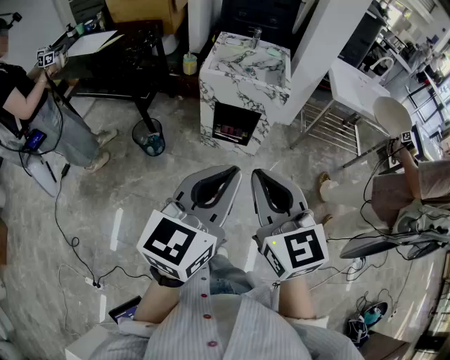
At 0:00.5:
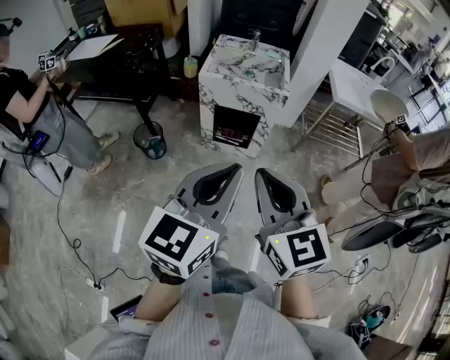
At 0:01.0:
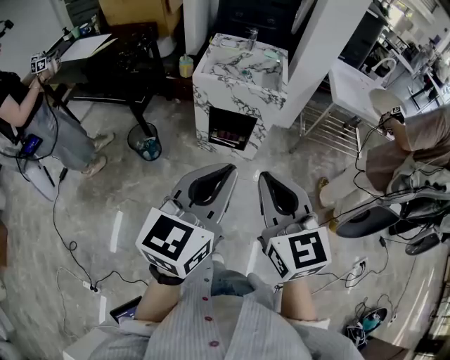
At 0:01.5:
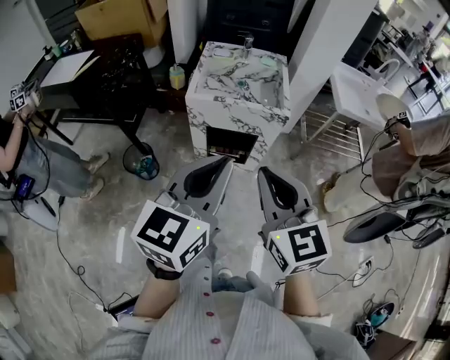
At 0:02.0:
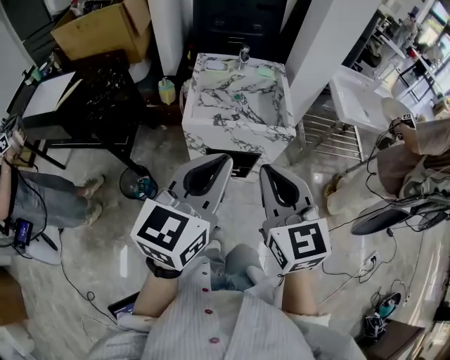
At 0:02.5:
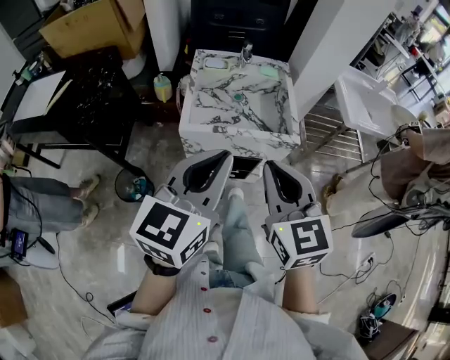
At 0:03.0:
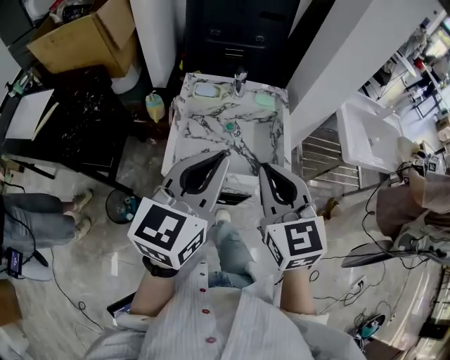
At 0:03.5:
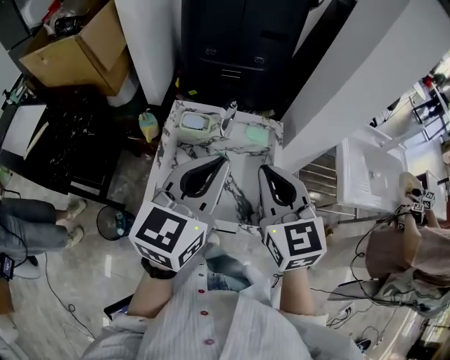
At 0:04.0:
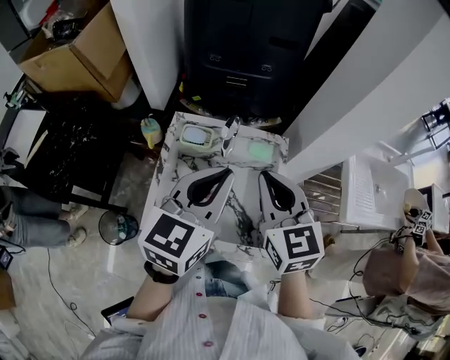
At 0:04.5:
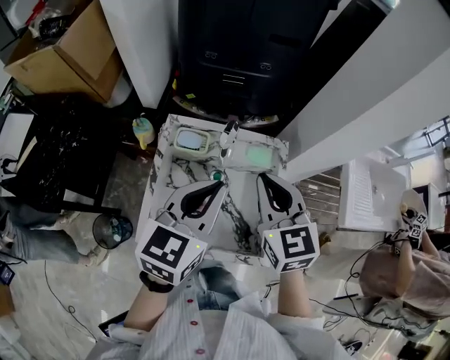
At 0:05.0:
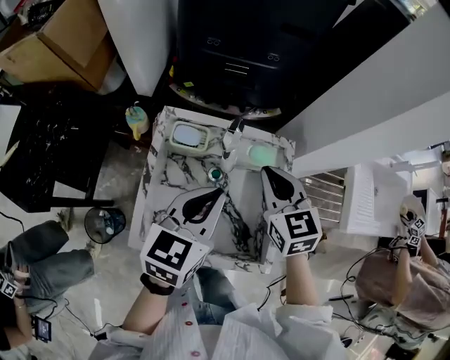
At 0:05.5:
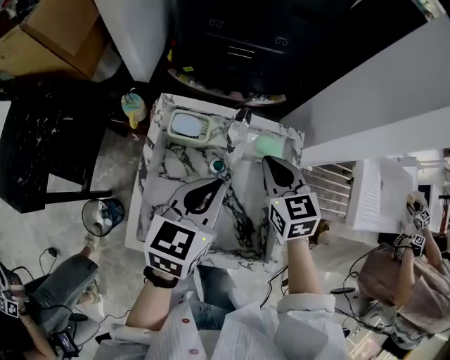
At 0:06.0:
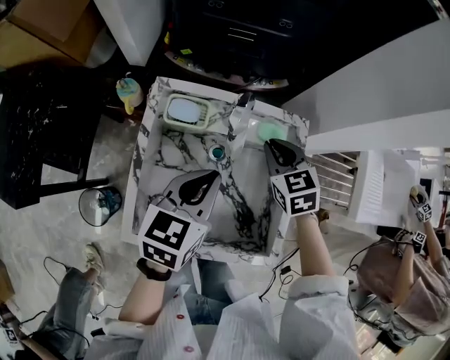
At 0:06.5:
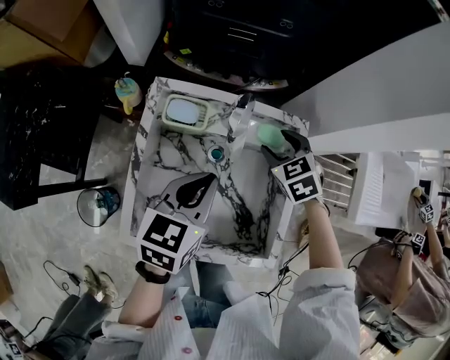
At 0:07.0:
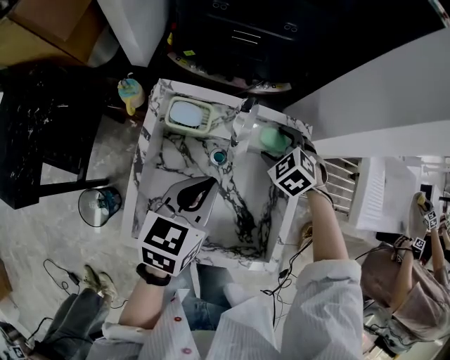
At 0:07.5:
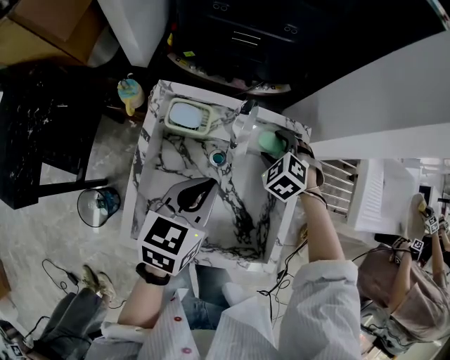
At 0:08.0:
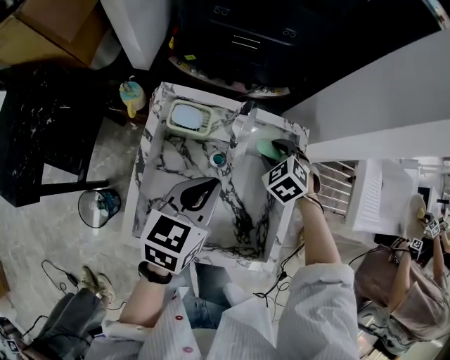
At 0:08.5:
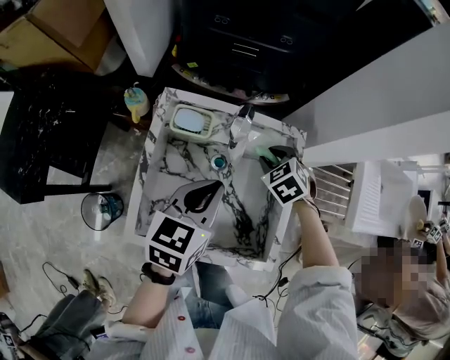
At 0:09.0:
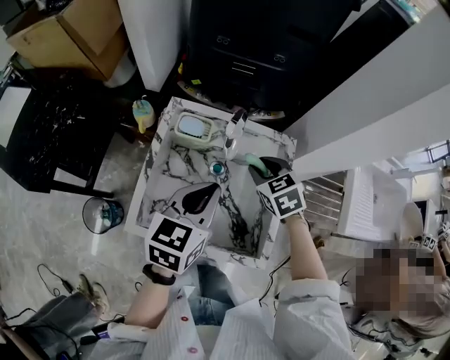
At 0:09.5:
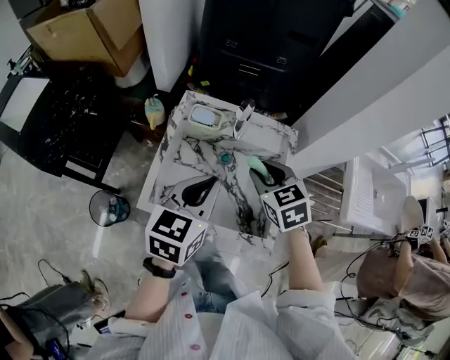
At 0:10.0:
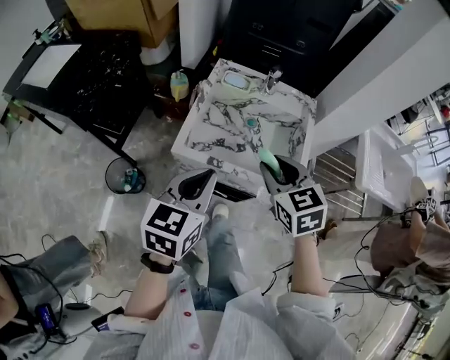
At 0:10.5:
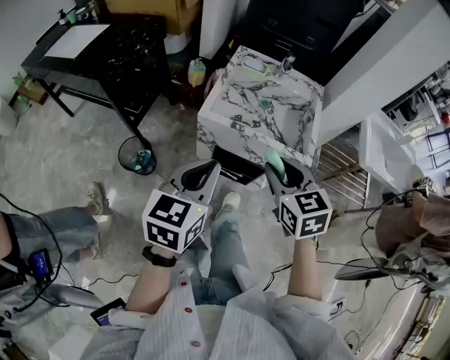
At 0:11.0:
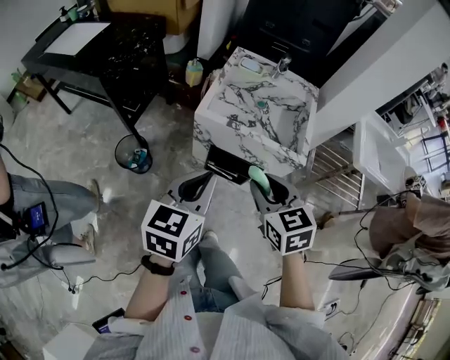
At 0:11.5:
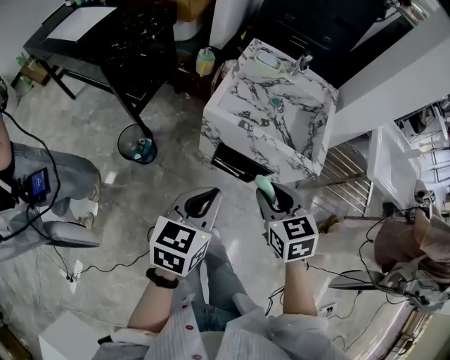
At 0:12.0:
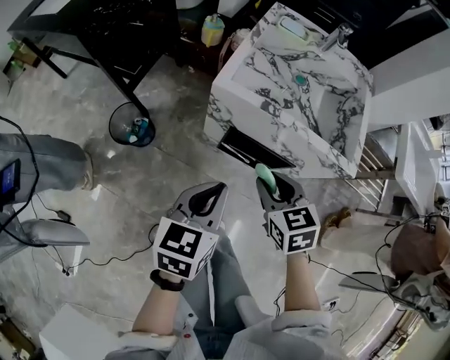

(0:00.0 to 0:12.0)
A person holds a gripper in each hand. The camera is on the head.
0:00.0 - 0:02.0: The two grippers go about 30 cm forward.
0:02.0 - 0:04.0: The two grippers travel together, forward, some 40 cm.
0:04.0 - 0:06.0: The left gripper is displaced downward by approximately 20 cm. The right gripper moves downward and forward, roughly 25 cm, and changes its angle by some 30 degrees.
0:06.0 - 0:08.0: The right gripper goes some 5 cm downward, rotates some 30 degrees, and opens up.
0:08.0 - 0:10.0: The right gripper goes roughly 35 cm backward and upward, and turns by some 40 degrees. Meanwhile the left gripper goes roughly 25 cm backward.
0:10.0 - 0:12.0: The left gripper goes roughly 20 cm downward and backward. Meanwhile the right gripper shifts some 25 cm downward, backward and to the left.

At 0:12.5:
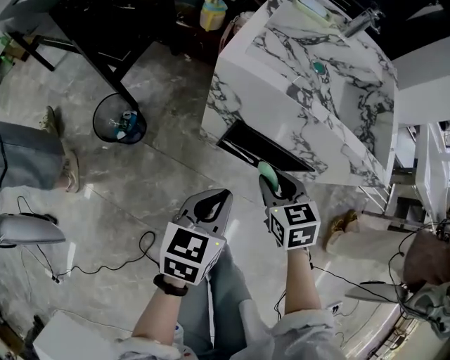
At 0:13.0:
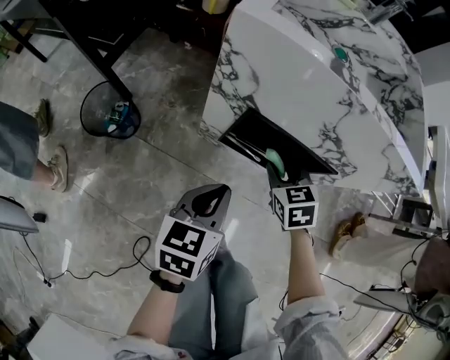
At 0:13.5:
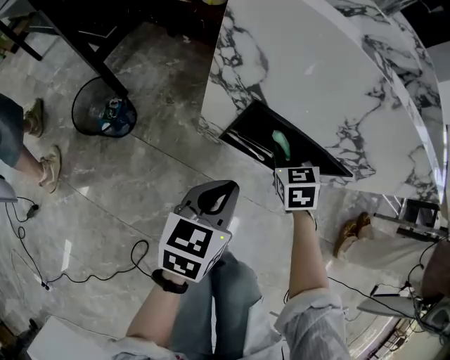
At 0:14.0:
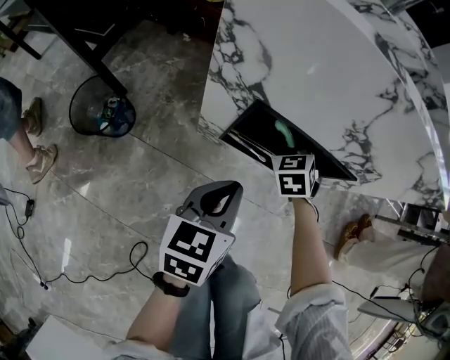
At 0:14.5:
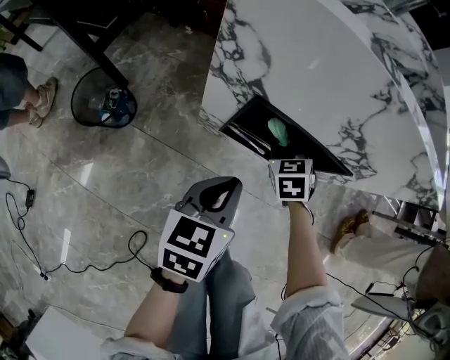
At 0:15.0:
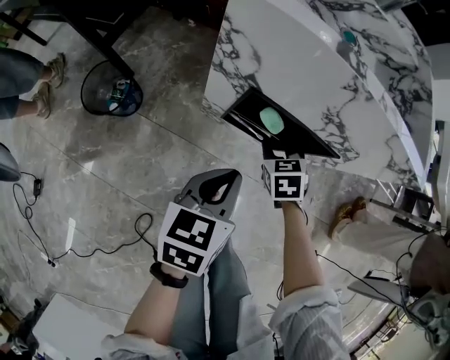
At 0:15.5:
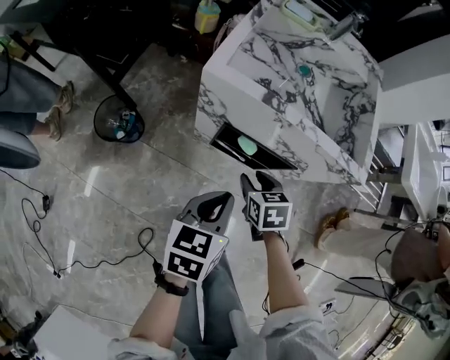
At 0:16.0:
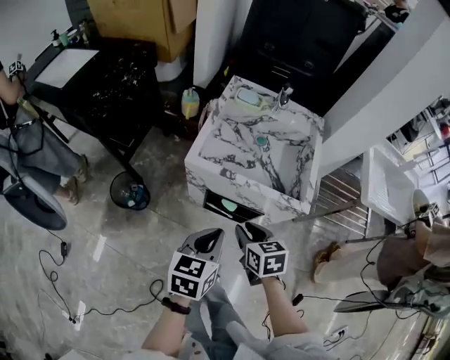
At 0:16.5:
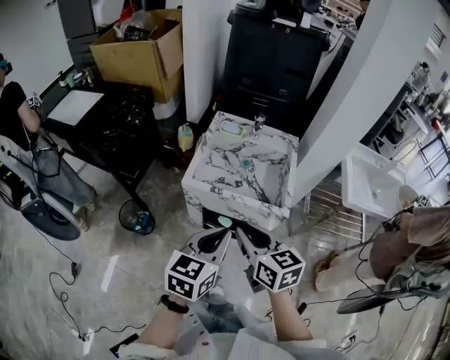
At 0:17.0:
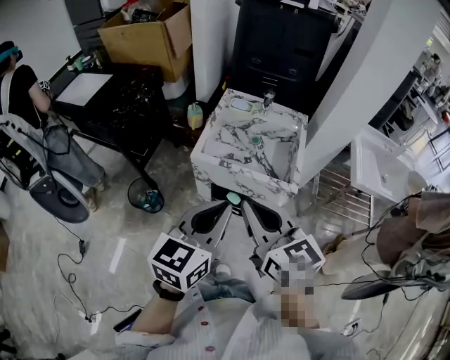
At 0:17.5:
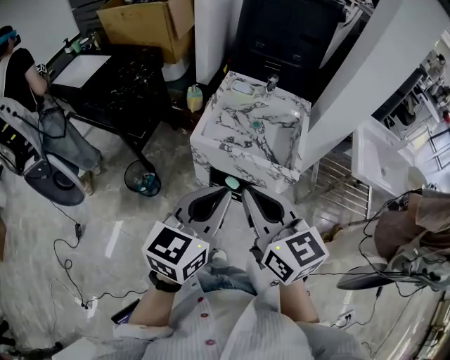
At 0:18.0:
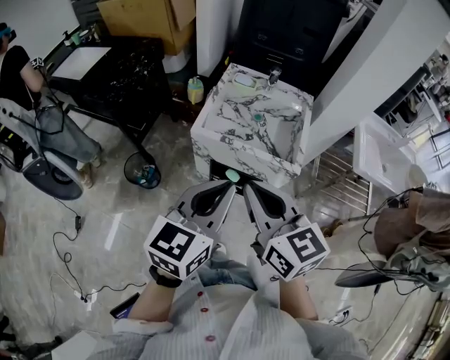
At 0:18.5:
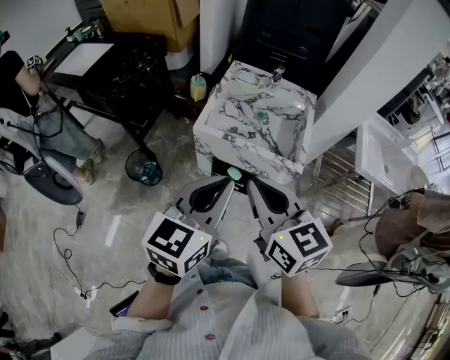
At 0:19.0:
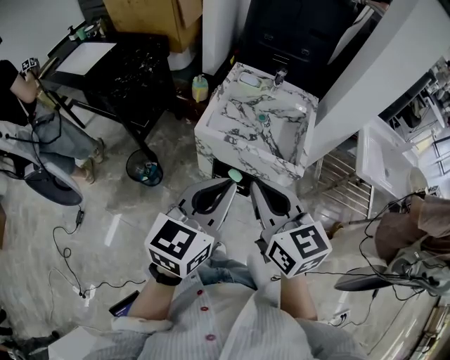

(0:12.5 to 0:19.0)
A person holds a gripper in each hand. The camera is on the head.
0:12.5 - 0:14.5: The left gripper moves downward, some 15 cm. Meanwhile the right gripper goes approximately 20 cm downward and forward.
0:14.5 - 0:17.0: The two grippers go some 60 cm upward. The right gripper tilts its fingers roughly 40 degrees upward, and closes up, while the left gripper turns by about 30 degrees.
0:17.0 - 0:19.0: The grippers move only a little.

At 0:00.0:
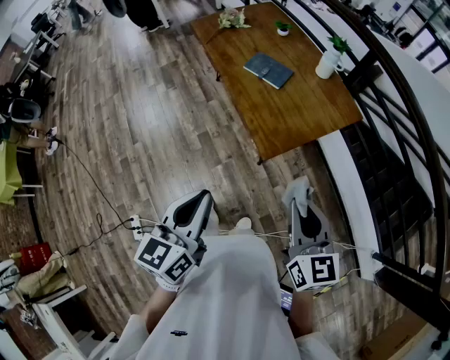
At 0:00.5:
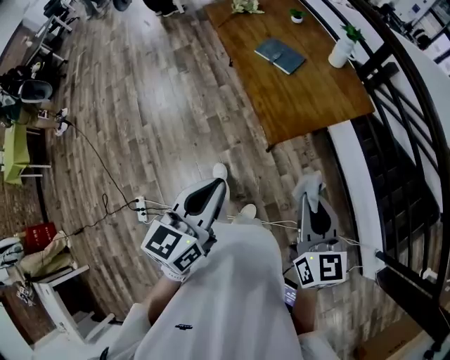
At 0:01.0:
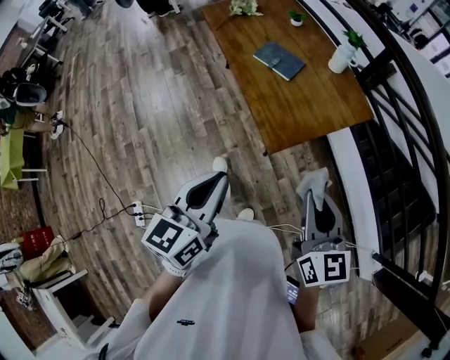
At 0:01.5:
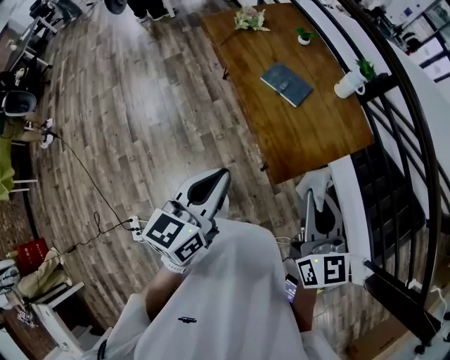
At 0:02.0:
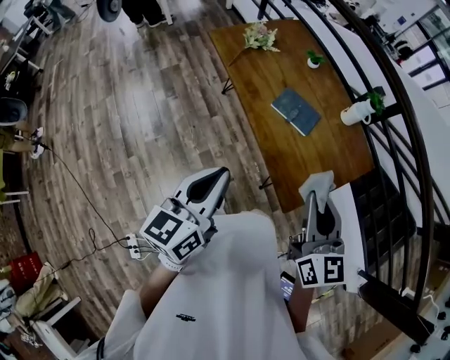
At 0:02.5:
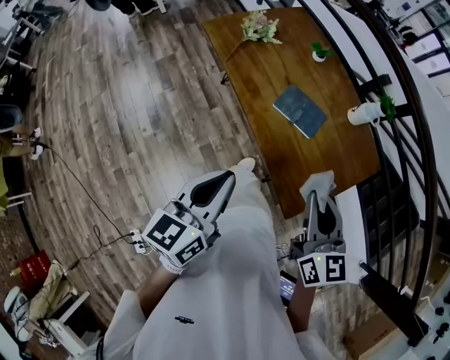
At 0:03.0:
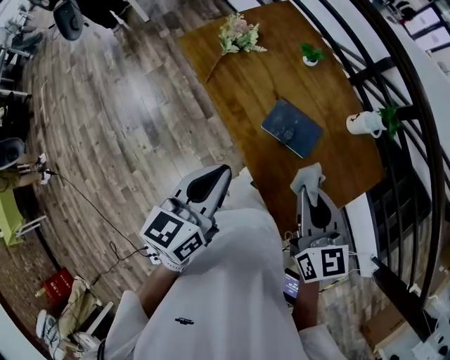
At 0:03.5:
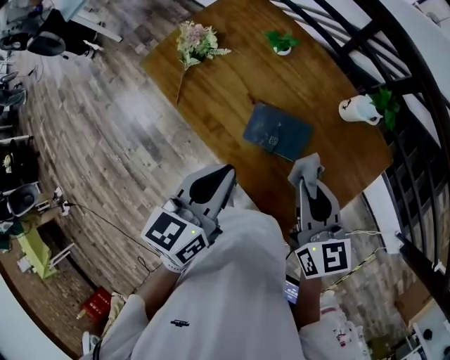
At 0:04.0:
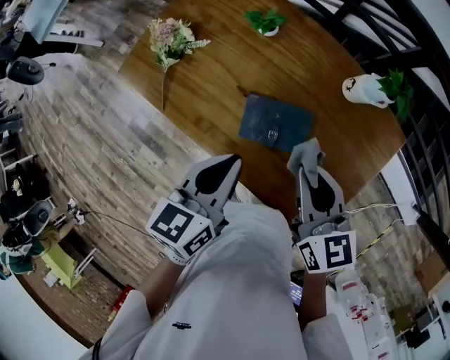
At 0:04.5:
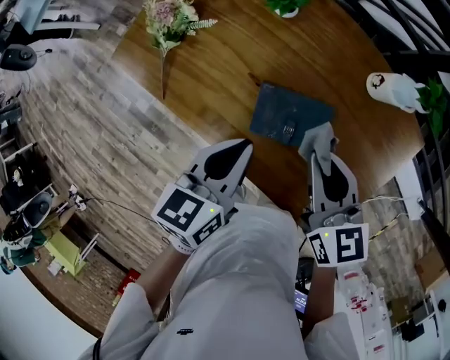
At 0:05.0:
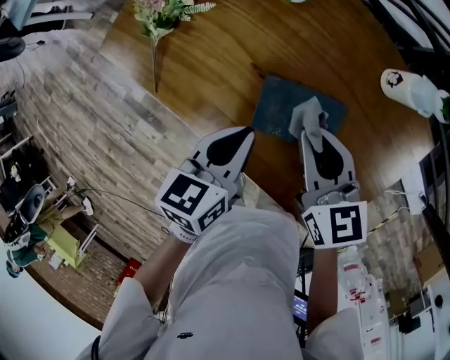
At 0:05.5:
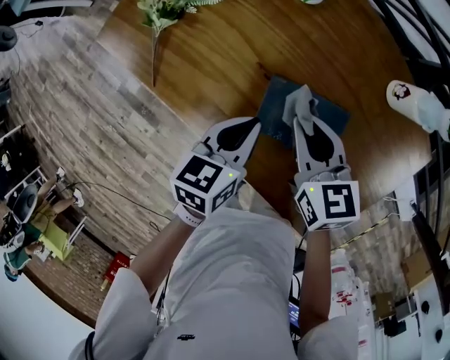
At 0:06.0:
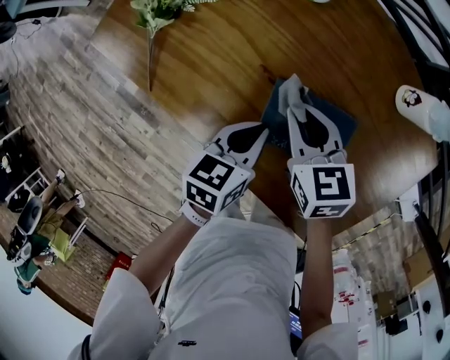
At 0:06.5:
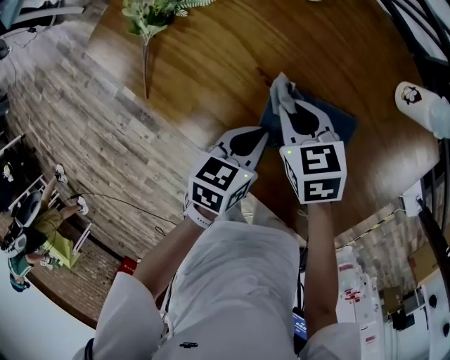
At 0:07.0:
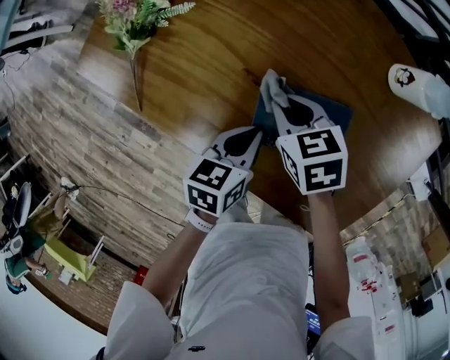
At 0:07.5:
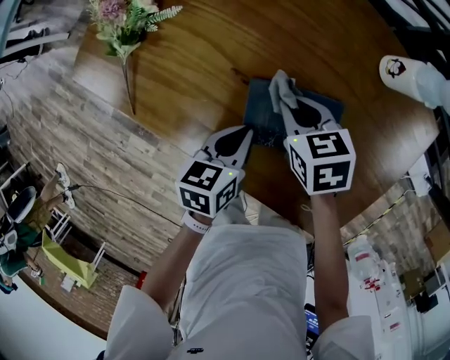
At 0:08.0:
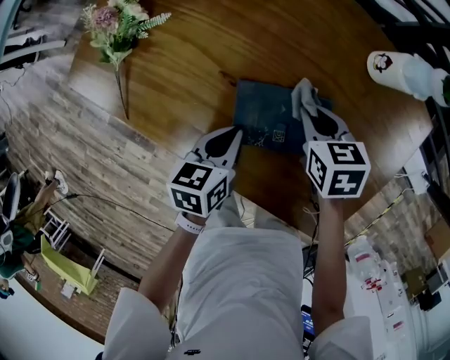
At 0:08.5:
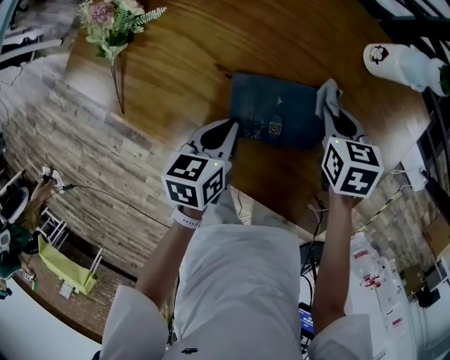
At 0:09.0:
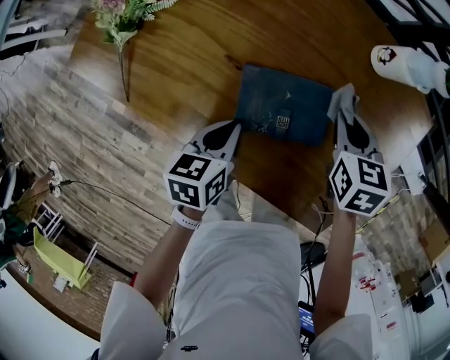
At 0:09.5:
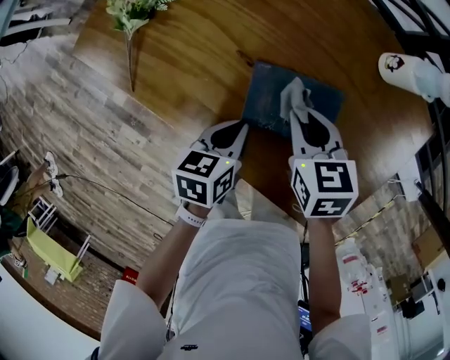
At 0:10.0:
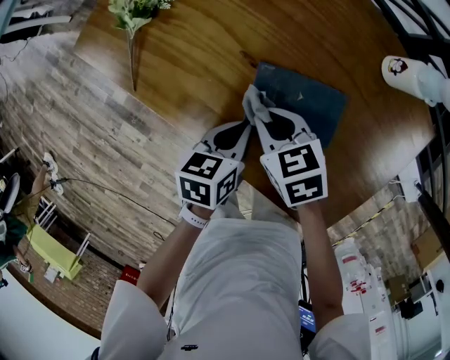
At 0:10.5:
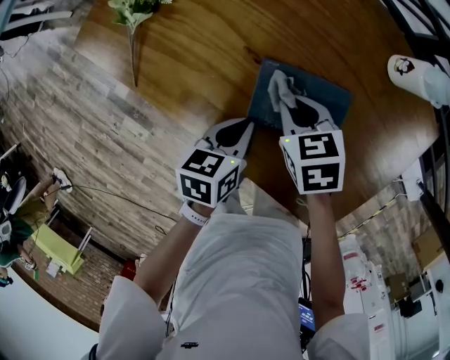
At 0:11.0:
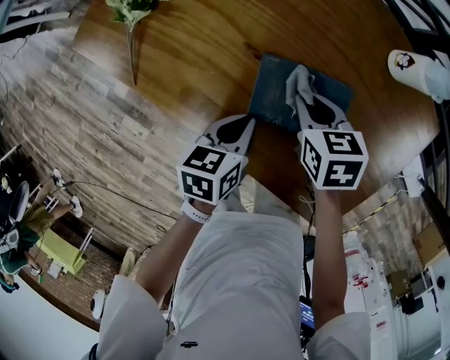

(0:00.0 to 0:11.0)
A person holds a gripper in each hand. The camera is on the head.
0:00.0 - 0:02.0: The grippers both shift forward and to the left by some 25 cm.
0:02.0 - 0:03.5: The grippers both shift forward by roughly 30 cm. The left gripper swivels some 20 degrees.
0:03.5 - 0:05.5: The right gripper travels downward, forward and to the left by approximately 25 cm, while the left gripper heads downward and forward, covering roughly 25 cm.
0:05.5 - 0:07.5: Both grippers move downward, some 10 cm. The right gripper changes its angle by approximately 20 degrees.
0:07.5 - 0:09.0: The right gripper goes approximately 15 cm to the right, and turns by some 20 degrees.
0:09.0 - 0:11.0: The right gripper moves to the left, some 10 cm.
